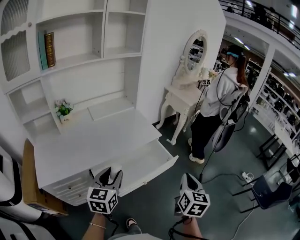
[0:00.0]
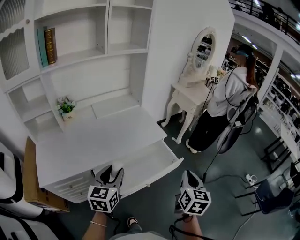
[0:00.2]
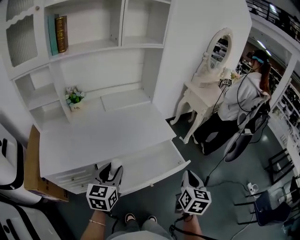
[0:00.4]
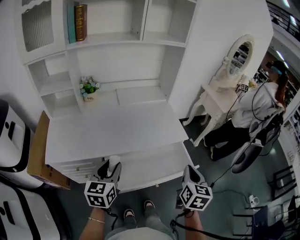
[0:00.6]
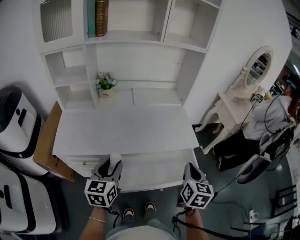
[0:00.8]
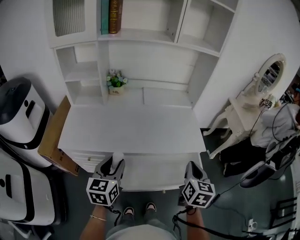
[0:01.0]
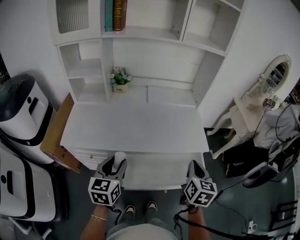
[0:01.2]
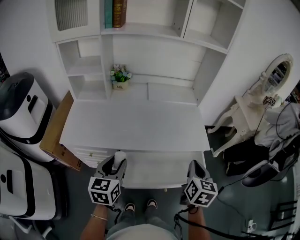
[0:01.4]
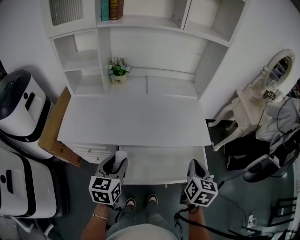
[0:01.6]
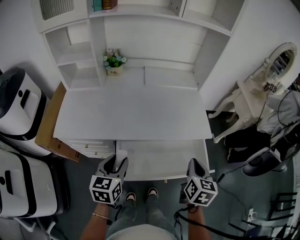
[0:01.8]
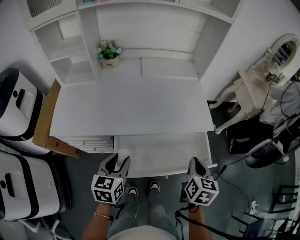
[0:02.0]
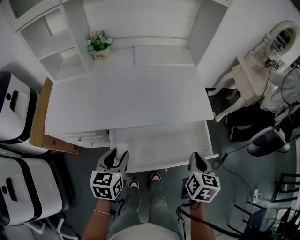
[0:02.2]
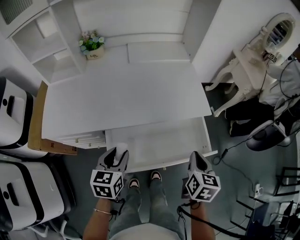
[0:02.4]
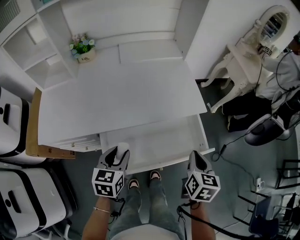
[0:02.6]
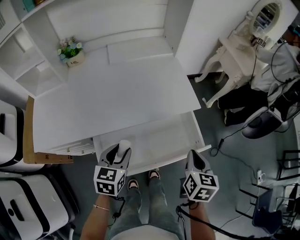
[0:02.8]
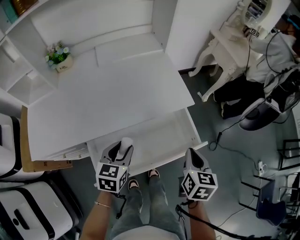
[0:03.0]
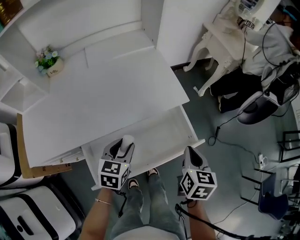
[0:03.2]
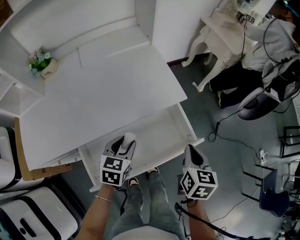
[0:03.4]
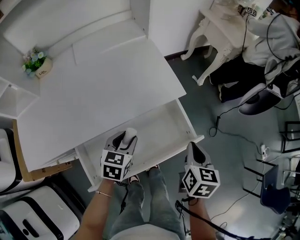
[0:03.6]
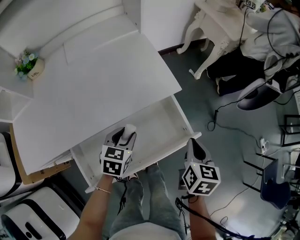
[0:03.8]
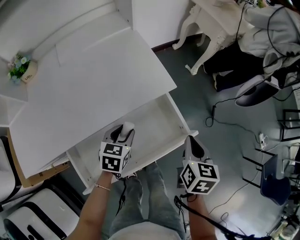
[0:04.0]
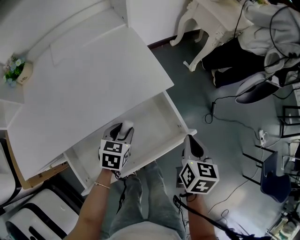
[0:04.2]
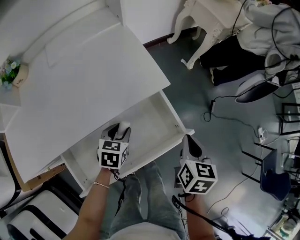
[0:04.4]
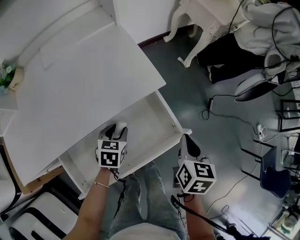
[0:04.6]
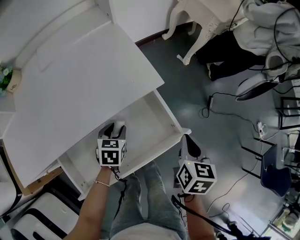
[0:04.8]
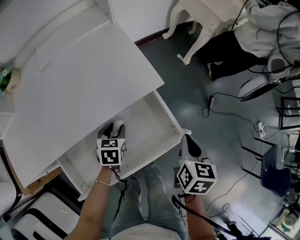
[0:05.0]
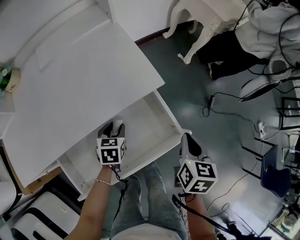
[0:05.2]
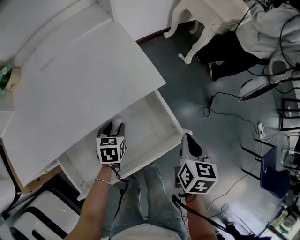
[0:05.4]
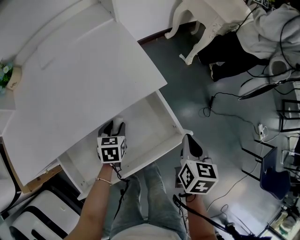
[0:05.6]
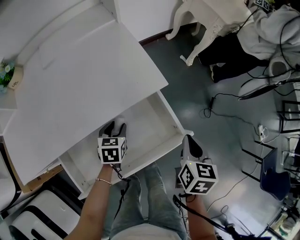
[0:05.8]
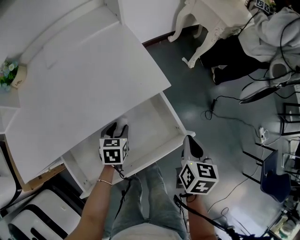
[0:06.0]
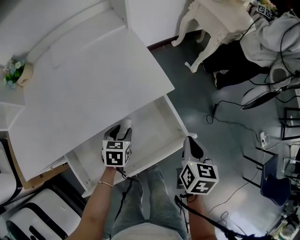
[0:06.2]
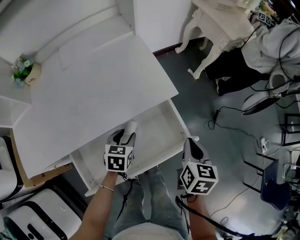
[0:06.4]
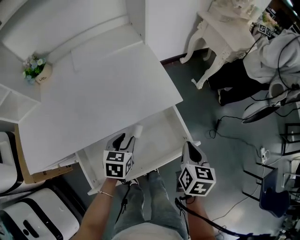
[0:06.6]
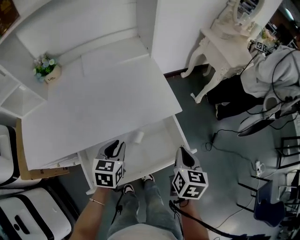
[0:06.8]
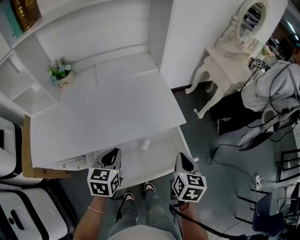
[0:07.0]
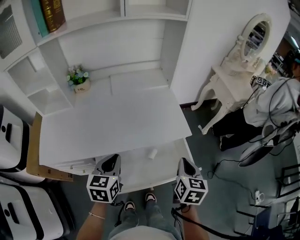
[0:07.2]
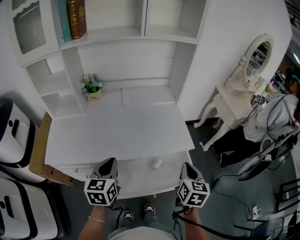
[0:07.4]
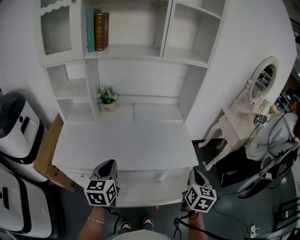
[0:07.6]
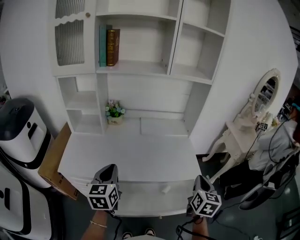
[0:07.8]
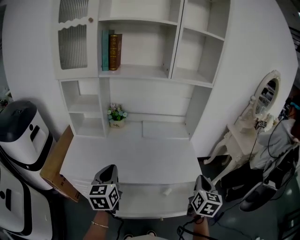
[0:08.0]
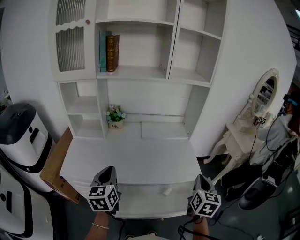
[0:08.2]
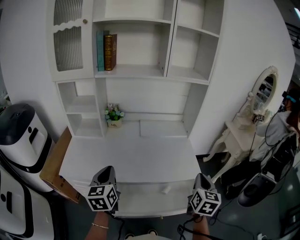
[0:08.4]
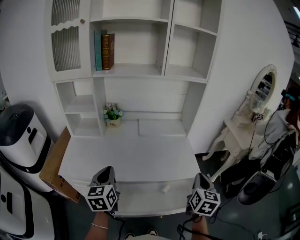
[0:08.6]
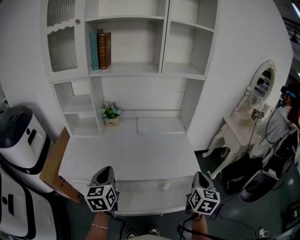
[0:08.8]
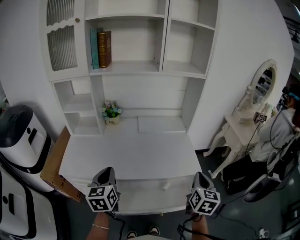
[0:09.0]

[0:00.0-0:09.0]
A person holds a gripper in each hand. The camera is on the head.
0:00.0 to 0:01.6: The right gripper shifts by approximately 25 cm, and changes its angle by some 30 degrees. Meanwhile the left gripper changes place by approximately 10 cm, and rotates approximately 30 degrees.
0:01.6 to 0:03.0: The right gripper goes about 15 cm downward and to the right, while the left gripper travels to the right, downward and forward by approximately 20 cm, and turns by approximately 30 degrees.
0:03.0 to 0:04.4: The left gripper goes some 20 cm downward, forward and to the right. Meanwhile the right gripper shifts roughly 10 cm to the right, downward and forward.
0:04.4 to 0:06.0: The grippers move only a little.
0:06.0 to 0:07.6: The right gripper goes about 25 cm upward and to the left, and swivels approximately 30 degrees. Meanwhile the left gripper is displaced upward, to the left and backward by about 50 cm, tips its fingers upward by roughly 40 degrees, and closes.
0:07.6 to 0:09.0: There are only small adjustments of the grippers.

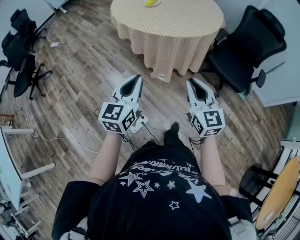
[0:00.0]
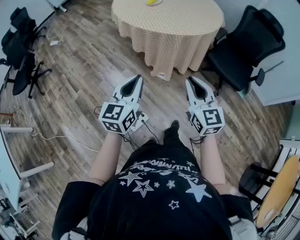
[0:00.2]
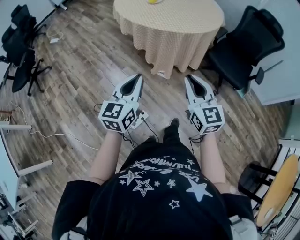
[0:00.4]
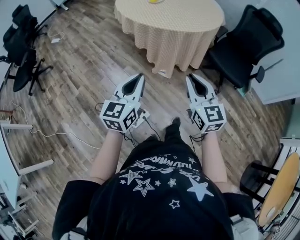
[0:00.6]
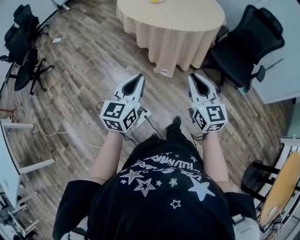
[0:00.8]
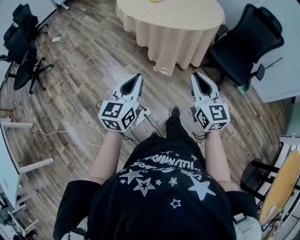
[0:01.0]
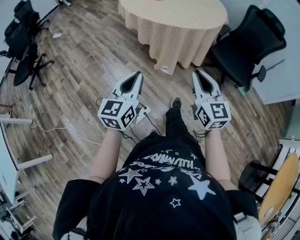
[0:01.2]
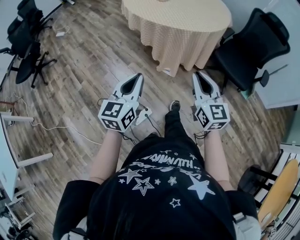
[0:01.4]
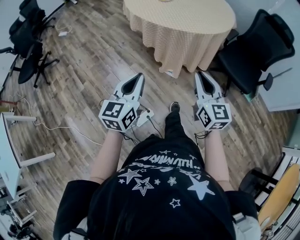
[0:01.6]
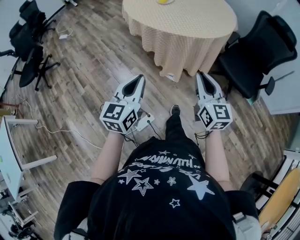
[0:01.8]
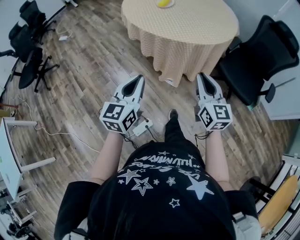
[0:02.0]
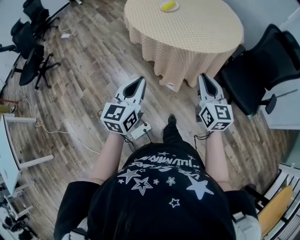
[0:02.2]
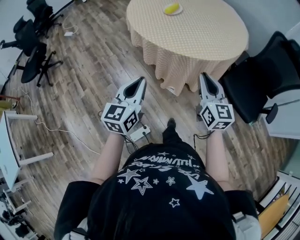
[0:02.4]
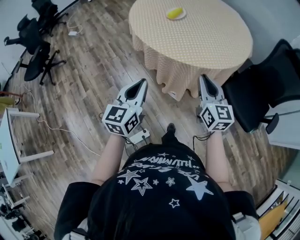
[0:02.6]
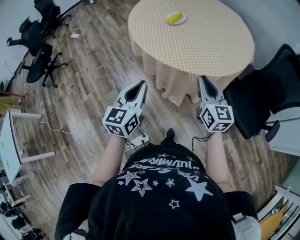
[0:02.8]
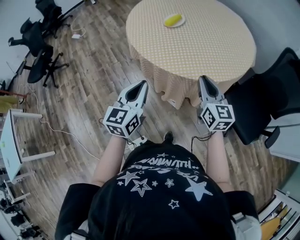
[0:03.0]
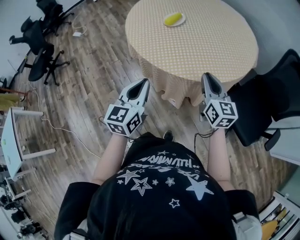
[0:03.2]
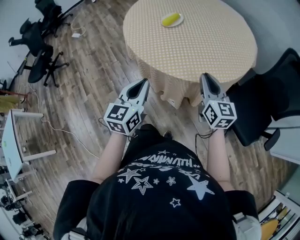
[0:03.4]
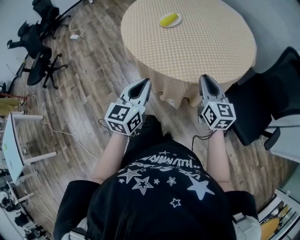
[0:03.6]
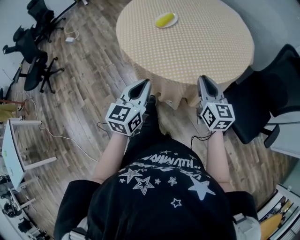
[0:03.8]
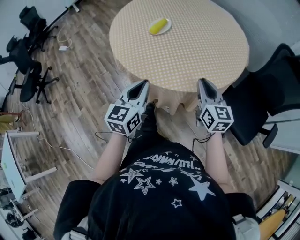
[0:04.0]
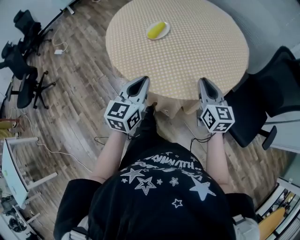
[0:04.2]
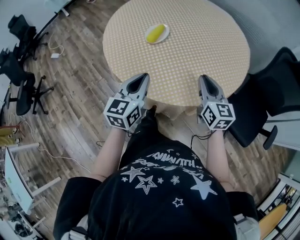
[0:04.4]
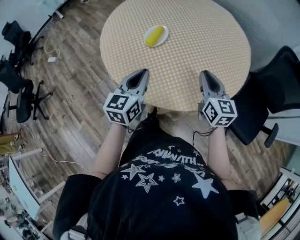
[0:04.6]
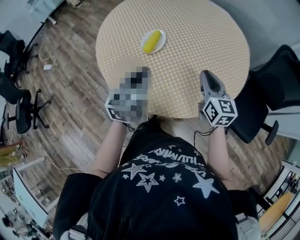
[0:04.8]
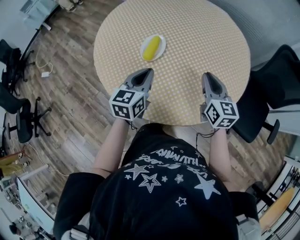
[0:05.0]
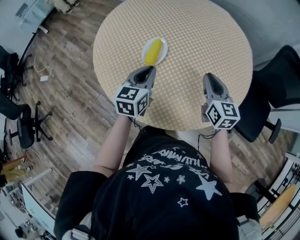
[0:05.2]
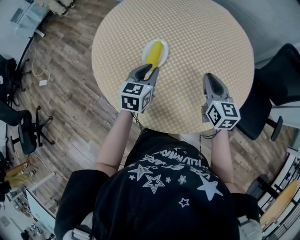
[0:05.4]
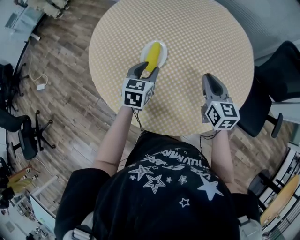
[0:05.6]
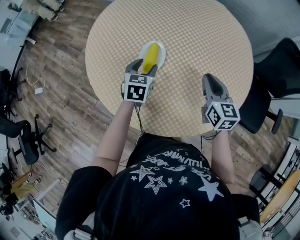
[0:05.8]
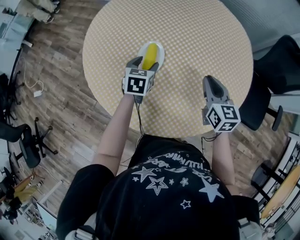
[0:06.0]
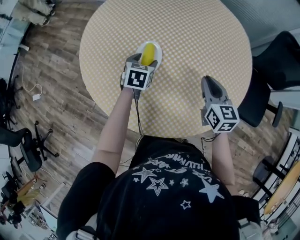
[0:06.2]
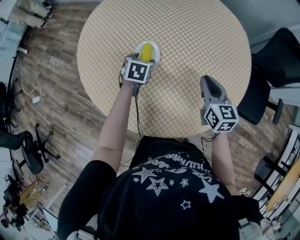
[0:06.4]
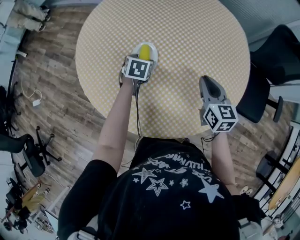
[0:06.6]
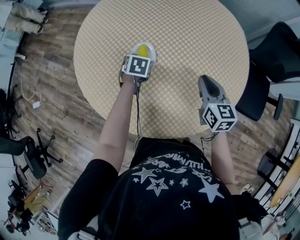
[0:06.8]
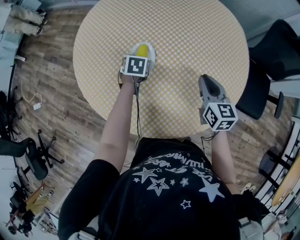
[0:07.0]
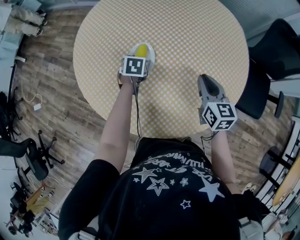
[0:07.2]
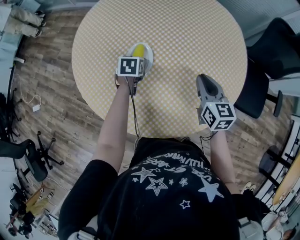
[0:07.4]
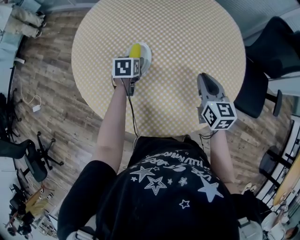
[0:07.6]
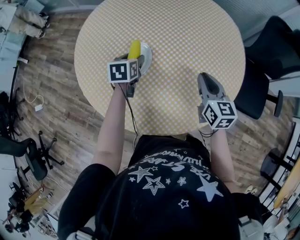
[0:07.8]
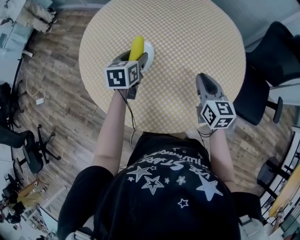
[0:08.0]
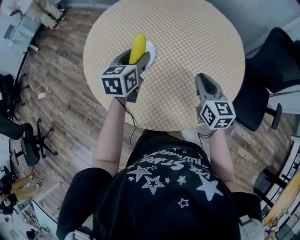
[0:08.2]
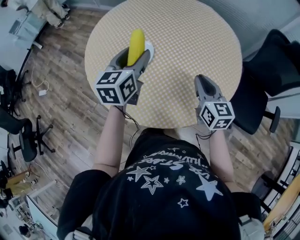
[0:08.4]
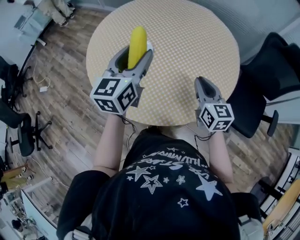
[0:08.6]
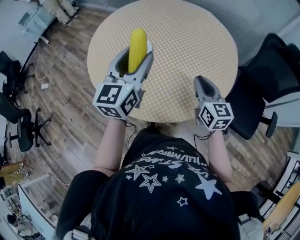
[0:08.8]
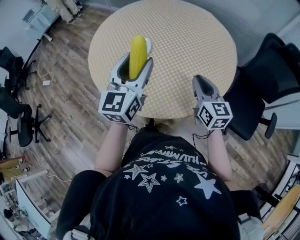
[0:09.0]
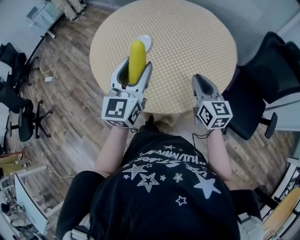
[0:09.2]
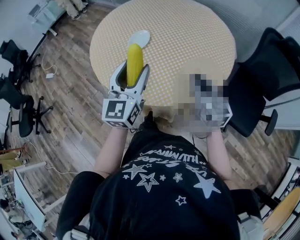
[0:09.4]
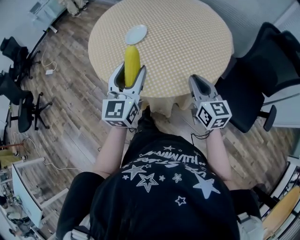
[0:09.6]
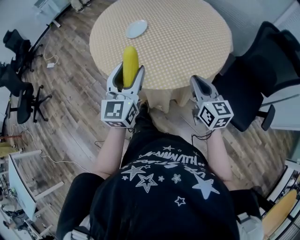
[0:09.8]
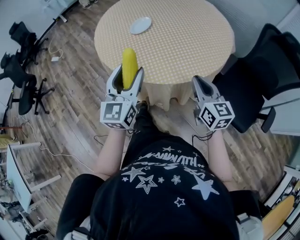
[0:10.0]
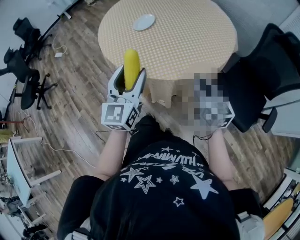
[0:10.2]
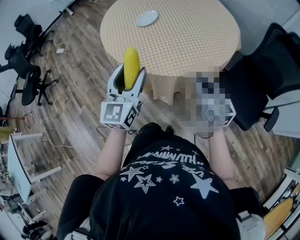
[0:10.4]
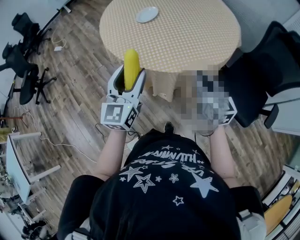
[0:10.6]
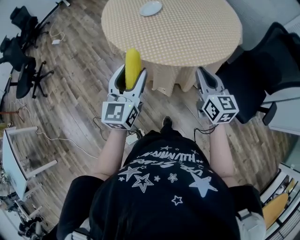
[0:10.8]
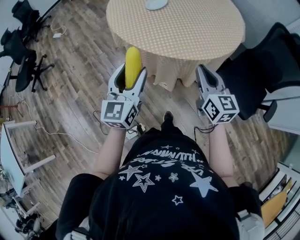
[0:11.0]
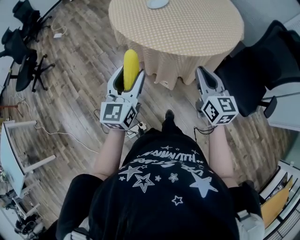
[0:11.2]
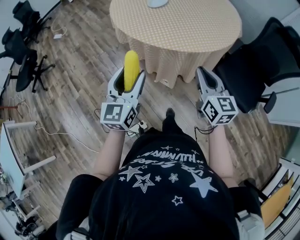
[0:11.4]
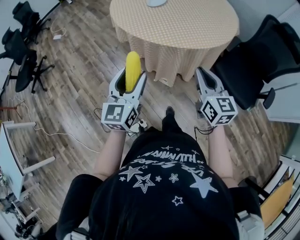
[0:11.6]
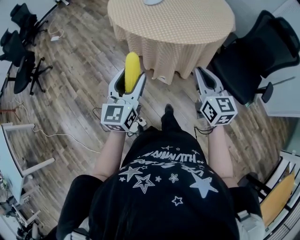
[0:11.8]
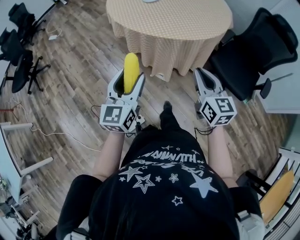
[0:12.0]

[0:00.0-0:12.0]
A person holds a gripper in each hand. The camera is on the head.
0:01.6 to 0:03.0: Both grippers travel together forward, approximately 30 cm.
0:03.0 to 0:04.4: The grippers both shift forward by approximately 20 cm.
0:04.4 to 0:06.0: The left gripper heads forward and downward, covering roughly 35 cm, rotates approximately 30 degrees, and opens; the right gripper goes roughly 15 cm forward, and changes its angle by some 20 degrees.
0:06.0 to 0:07.6: The left gripper shifts by roughly 5 cm.
0:07.6 to 0:09.0: The left gripper moves upward and backward, some 40 cm, and angles its fingers upward, by approximately 60 degrees; the right gripper goes roughly 10 cm backward and upward.
0:09.0 to 0:10.4: The two grippers go roughly 20 cm backward.
0:10.4 to 0:12.0: The two grippers go approximately 25 cm backward and to the left.

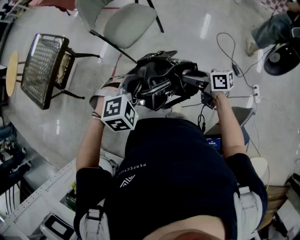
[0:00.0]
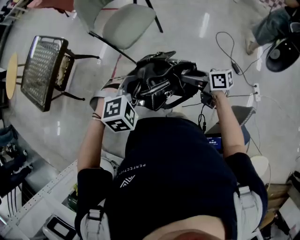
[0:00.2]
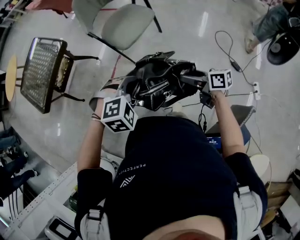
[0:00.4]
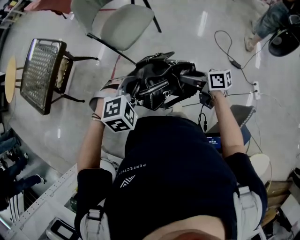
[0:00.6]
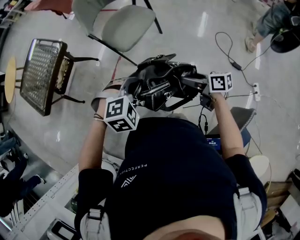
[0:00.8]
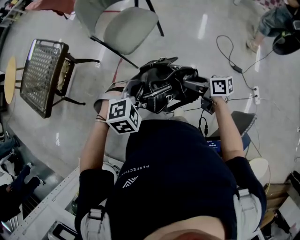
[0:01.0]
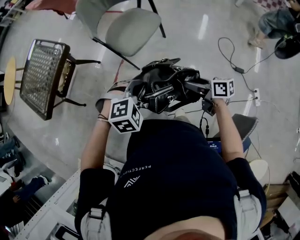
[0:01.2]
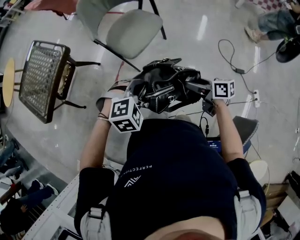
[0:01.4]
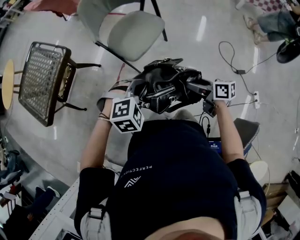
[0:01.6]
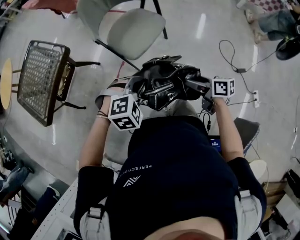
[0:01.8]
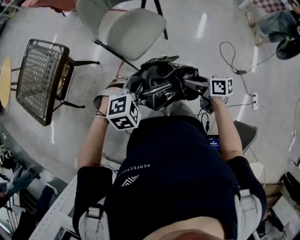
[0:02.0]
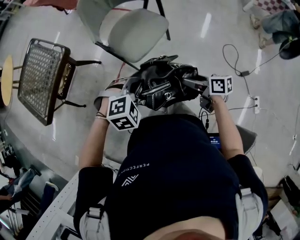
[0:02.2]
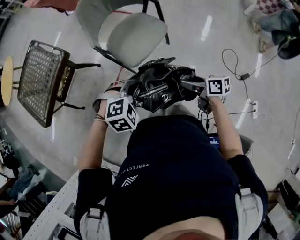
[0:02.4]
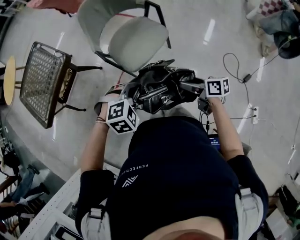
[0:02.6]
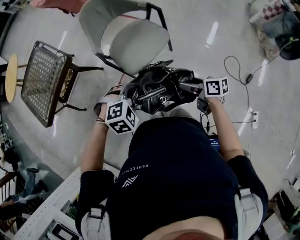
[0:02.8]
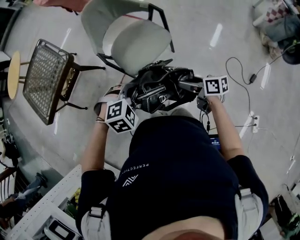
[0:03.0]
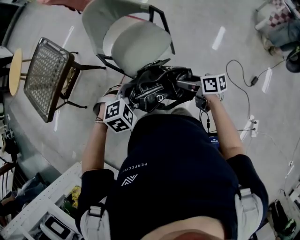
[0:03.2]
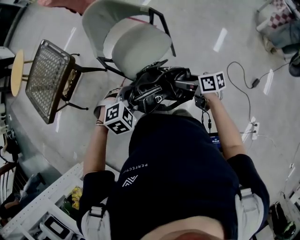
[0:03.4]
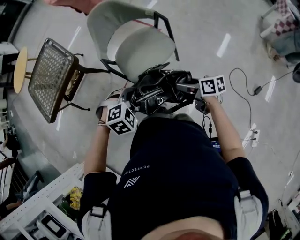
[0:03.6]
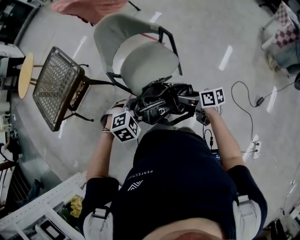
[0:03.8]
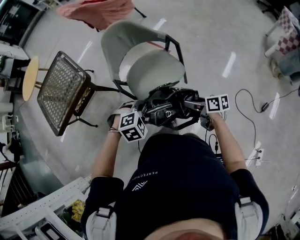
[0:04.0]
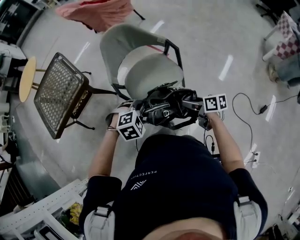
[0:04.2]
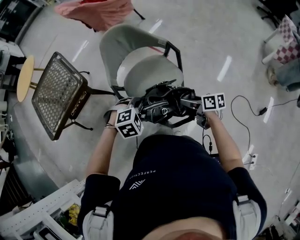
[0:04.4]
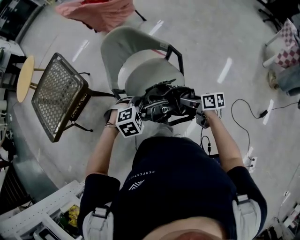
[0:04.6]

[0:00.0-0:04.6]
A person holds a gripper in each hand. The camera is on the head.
0:00.0 to 0:01.6: Both grippers travel together forward and to the left, approximately 15 cm.
0:01.6 to 0:03.0: The grippers both shift forward by approximately 10 cm.
0:03.0 to 0:04.6: Both grippers travel together forward, roughly 20 cm.
